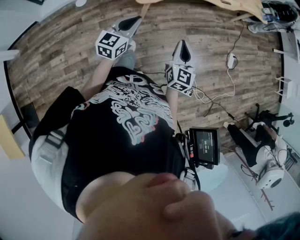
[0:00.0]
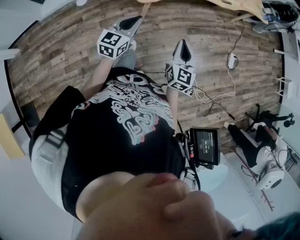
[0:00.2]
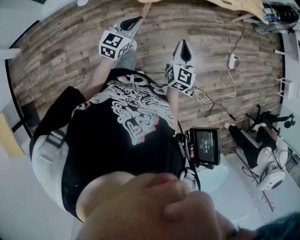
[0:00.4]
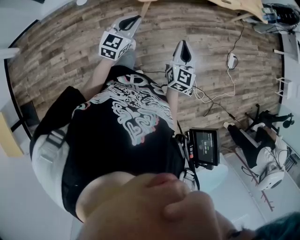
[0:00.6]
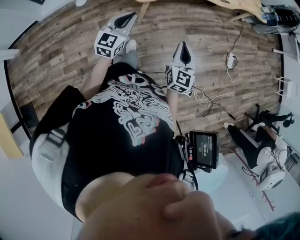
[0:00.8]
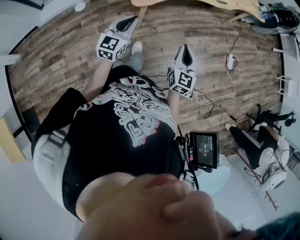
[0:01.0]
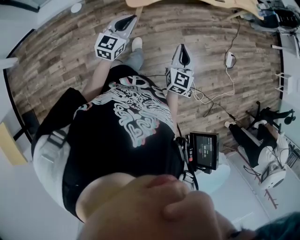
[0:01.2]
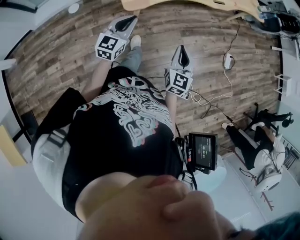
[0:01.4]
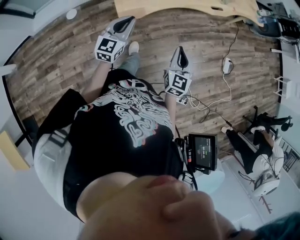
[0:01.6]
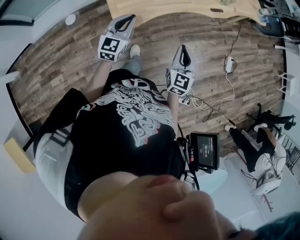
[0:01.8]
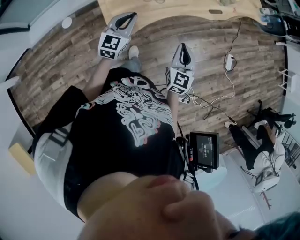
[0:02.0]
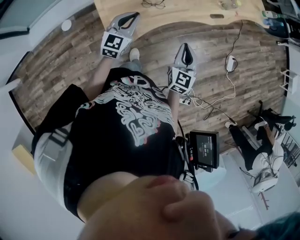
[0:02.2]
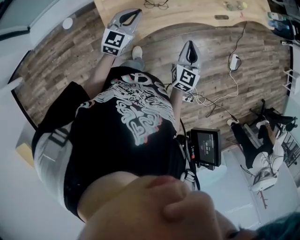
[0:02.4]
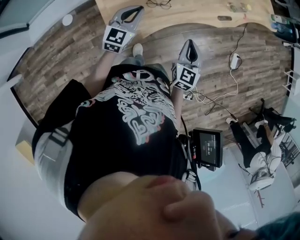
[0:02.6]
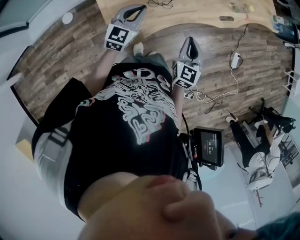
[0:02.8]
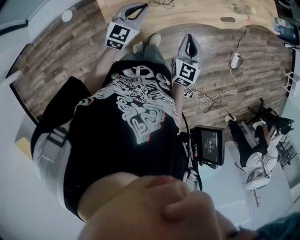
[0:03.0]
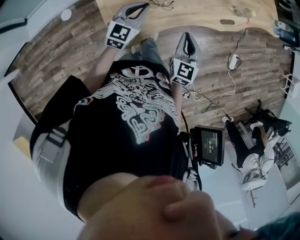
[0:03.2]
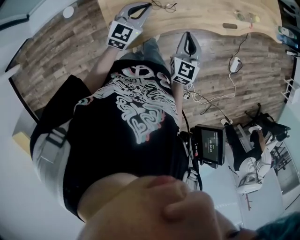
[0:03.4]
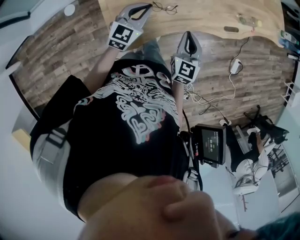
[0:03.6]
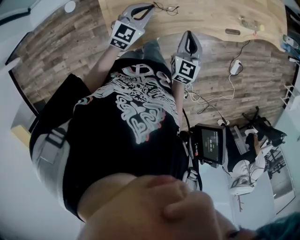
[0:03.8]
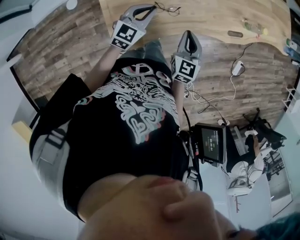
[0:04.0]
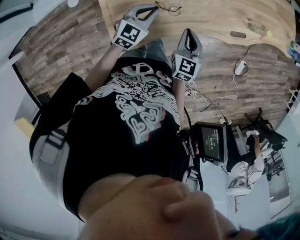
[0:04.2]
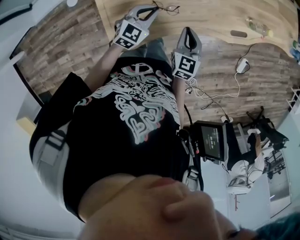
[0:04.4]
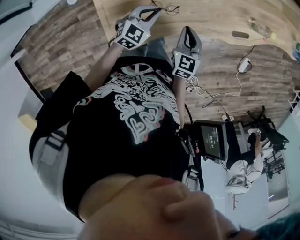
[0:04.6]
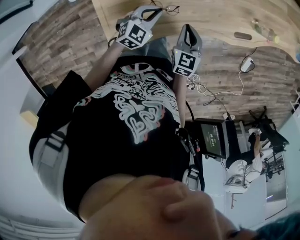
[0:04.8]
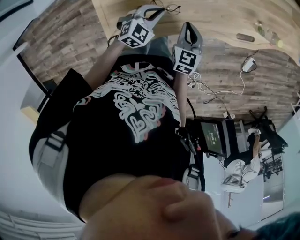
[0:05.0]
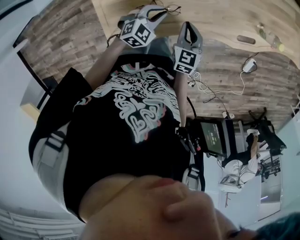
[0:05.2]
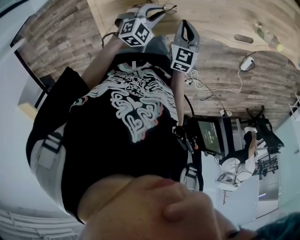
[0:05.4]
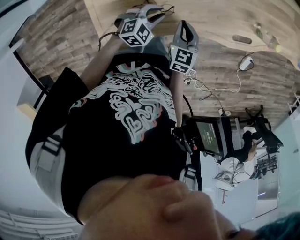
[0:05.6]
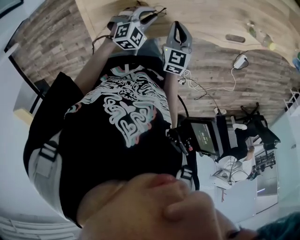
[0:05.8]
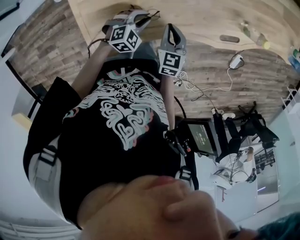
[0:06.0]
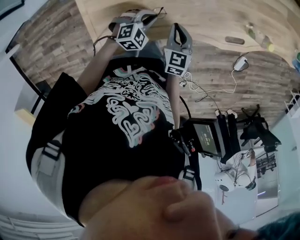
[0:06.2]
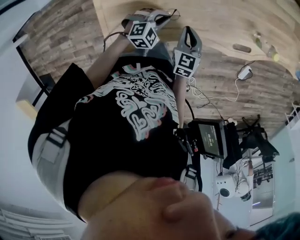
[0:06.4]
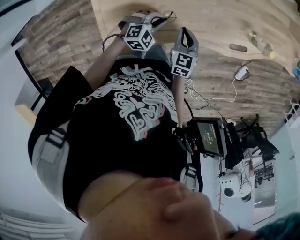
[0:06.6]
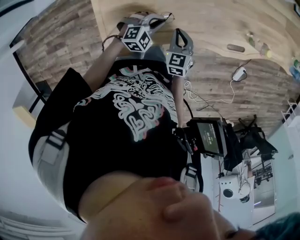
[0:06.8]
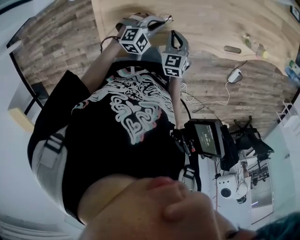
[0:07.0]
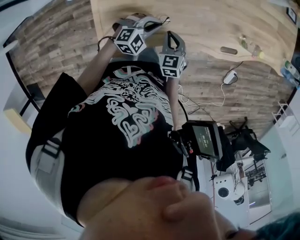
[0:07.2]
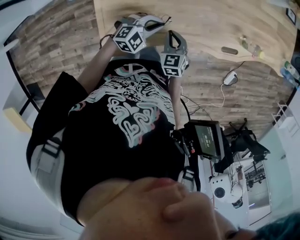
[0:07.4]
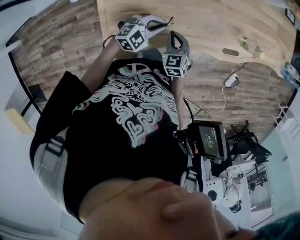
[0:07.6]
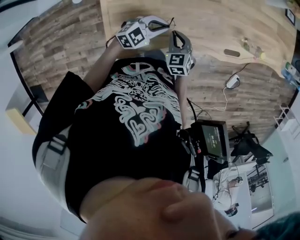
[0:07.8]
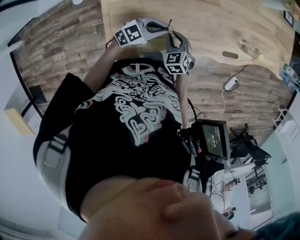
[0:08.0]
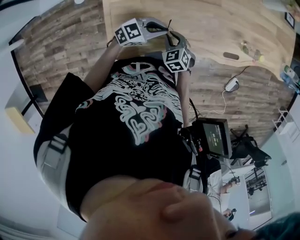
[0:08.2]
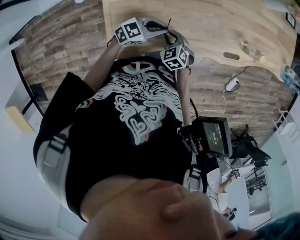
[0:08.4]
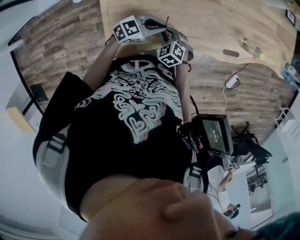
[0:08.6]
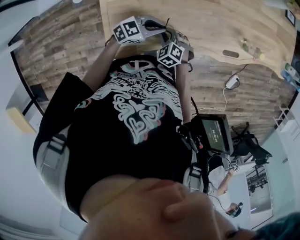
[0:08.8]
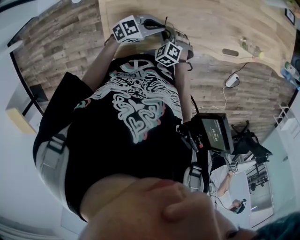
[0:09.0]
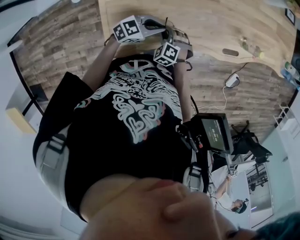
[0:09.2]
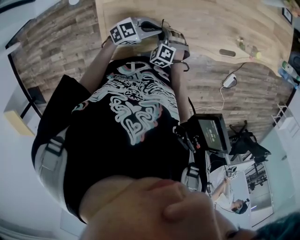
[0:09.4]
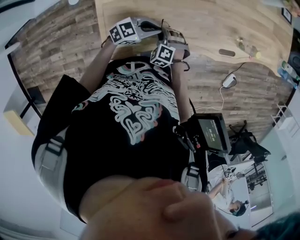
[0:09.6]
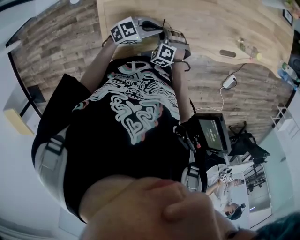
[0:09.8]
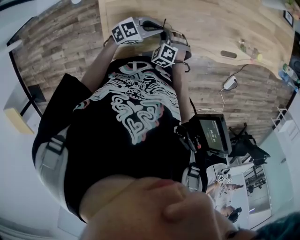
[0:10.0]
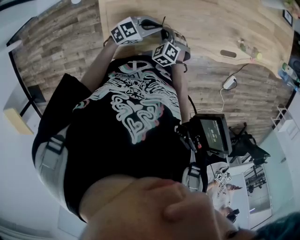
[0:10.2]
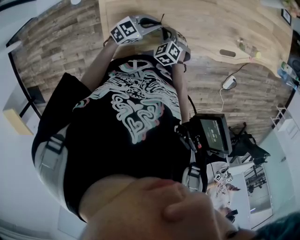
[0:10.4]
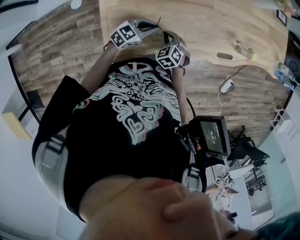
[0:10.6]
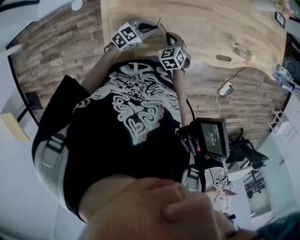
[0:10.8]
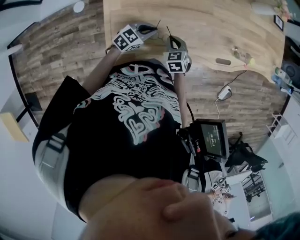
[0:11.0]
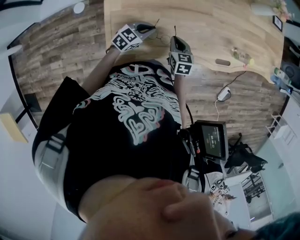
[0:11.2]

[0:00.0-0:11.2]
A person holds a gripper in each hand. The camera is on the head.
0:00.0 to 0:01.6: Both grippers move forward, some 15 cm.
0:01.6 to 0:03.2: The grippers both shift forward by about 35 cm.
0:03.2 to 0:04.8: The right gripper moves forward and downward, about 20 cm. Meanwhile the left gripper is displaced downward and forward by about 15 cm, and changes its angle by approximately 20 degrees.
0:04.8 to 0:06.4: The left gripper moves downward, some 5 cm, and rotates roughly 20 degrees. Meanwhile the right gripper changes place by roughly 5 cm.
0:06.4 to 0:08.0: The right gripper shifts approximately 10 cm to the left and backward, and rotates roughly 30 degrees; the left gripper shifts some 10 cm upward, and changes its angle by approximately 30 degrees.
0:08.0 to 0:09.6: The right gripper moves about 5 cm, and turns by roughly 40 degrees.
0:09.6 to 0:11.2: The left gripper moves to the left, approximately 5 cm, and rotates approximately 20 degrees, while the right gripper shifts approximately 10 cm upward and forward, and rotates around the line of its fingers by roughly 70 degrees, clockwise from behind.

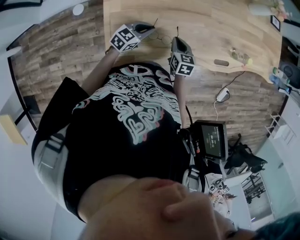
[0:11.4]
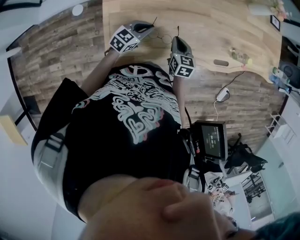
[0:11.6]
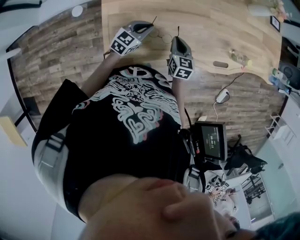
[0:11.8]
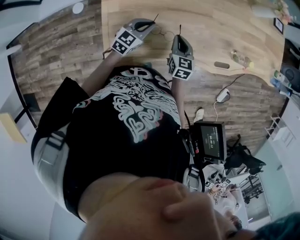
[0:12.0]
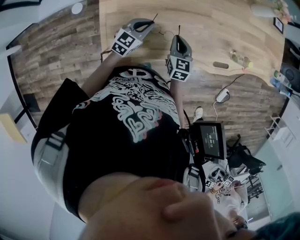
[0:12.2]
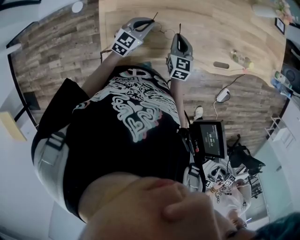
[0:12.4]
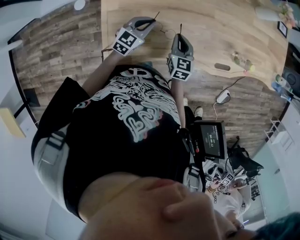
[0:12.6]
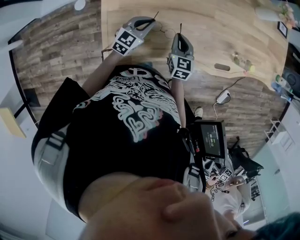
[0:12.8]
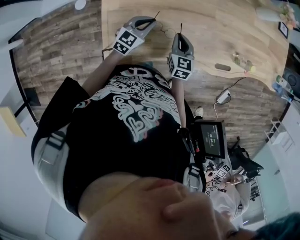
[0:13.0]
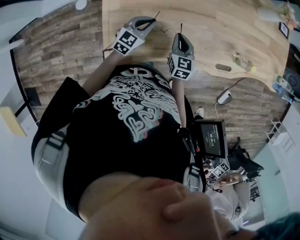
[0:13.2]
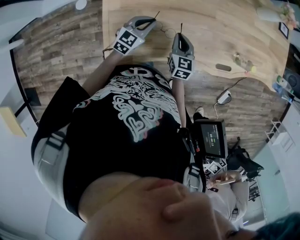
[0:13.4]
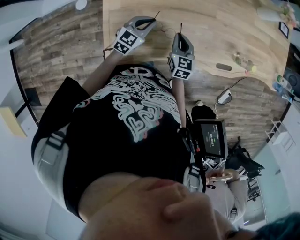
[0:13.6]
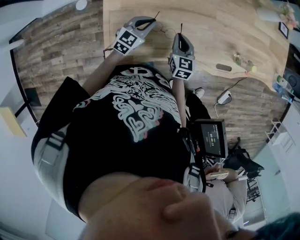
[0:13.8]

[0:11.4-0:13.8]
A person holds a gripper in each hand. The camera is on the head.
0:11.4 to 0:12.6: The grippers stay close to where they were, moving slightly.
0:12.6 to 0:13.8: Both grippers stay put.

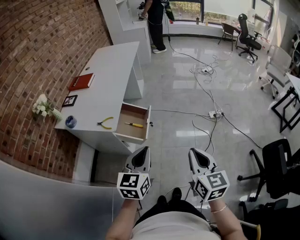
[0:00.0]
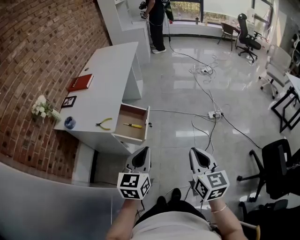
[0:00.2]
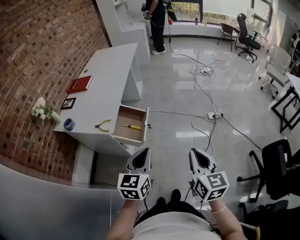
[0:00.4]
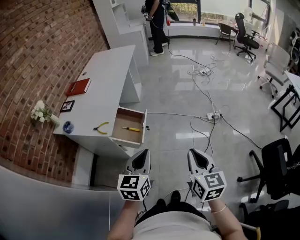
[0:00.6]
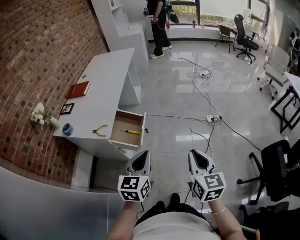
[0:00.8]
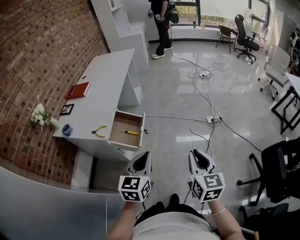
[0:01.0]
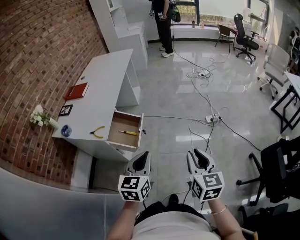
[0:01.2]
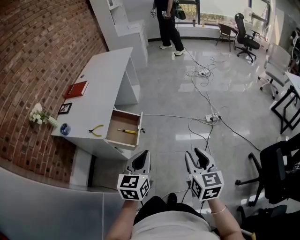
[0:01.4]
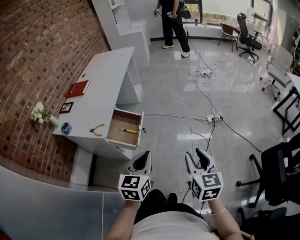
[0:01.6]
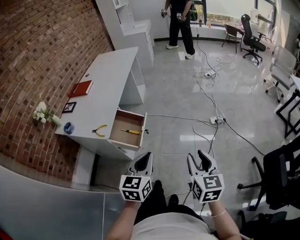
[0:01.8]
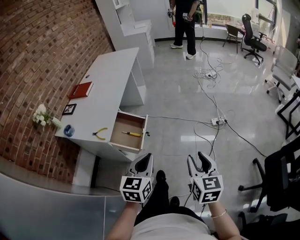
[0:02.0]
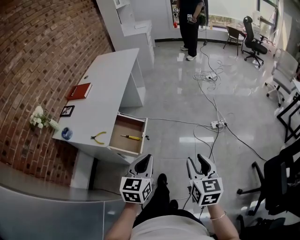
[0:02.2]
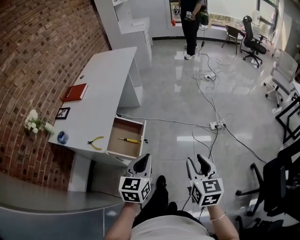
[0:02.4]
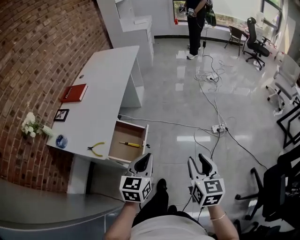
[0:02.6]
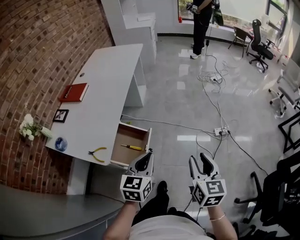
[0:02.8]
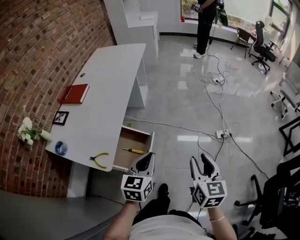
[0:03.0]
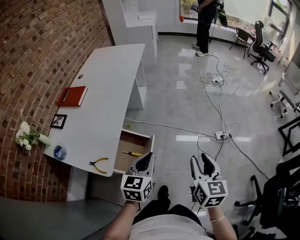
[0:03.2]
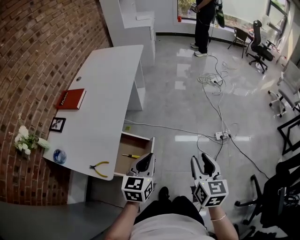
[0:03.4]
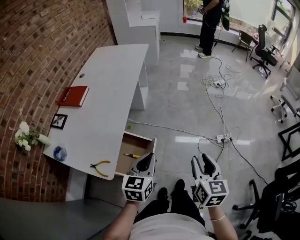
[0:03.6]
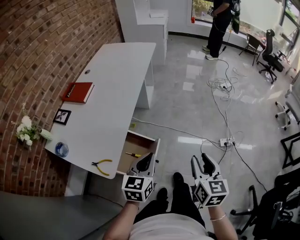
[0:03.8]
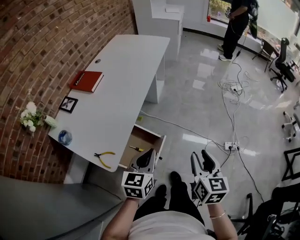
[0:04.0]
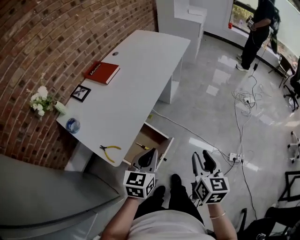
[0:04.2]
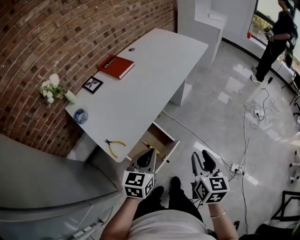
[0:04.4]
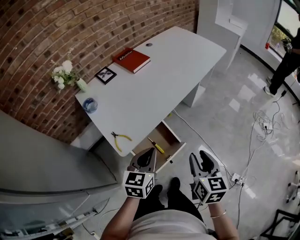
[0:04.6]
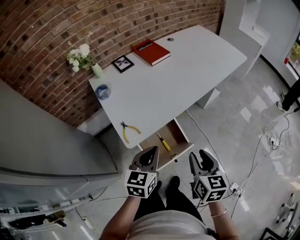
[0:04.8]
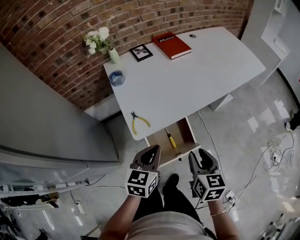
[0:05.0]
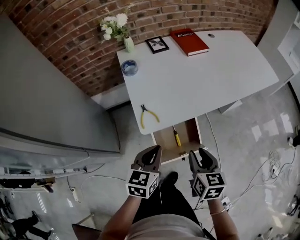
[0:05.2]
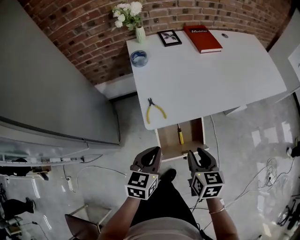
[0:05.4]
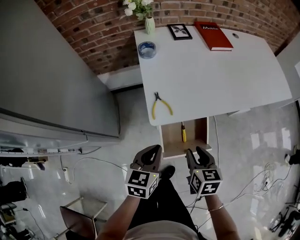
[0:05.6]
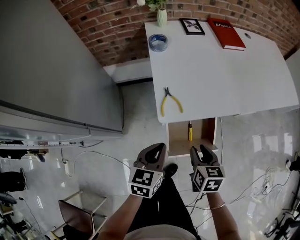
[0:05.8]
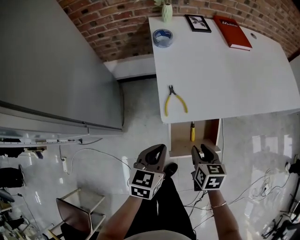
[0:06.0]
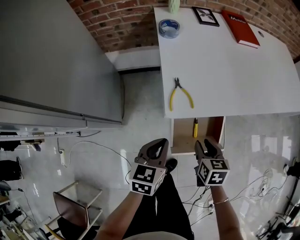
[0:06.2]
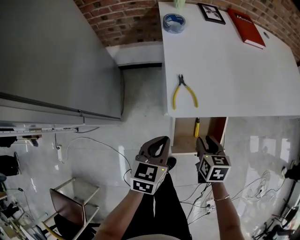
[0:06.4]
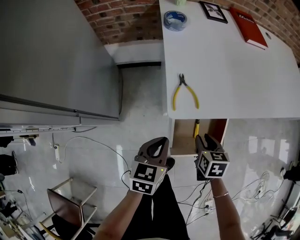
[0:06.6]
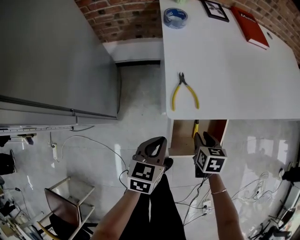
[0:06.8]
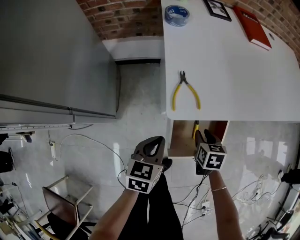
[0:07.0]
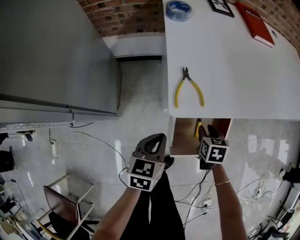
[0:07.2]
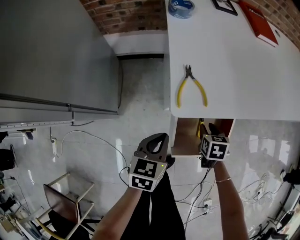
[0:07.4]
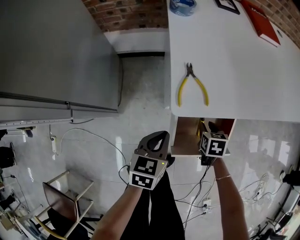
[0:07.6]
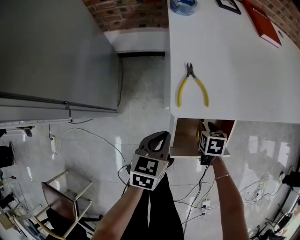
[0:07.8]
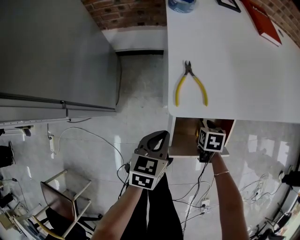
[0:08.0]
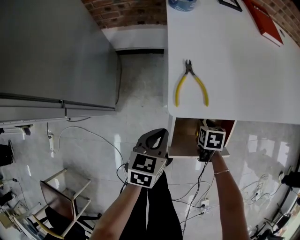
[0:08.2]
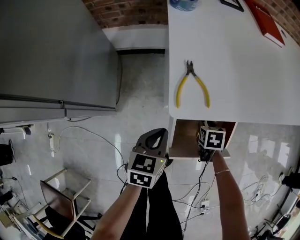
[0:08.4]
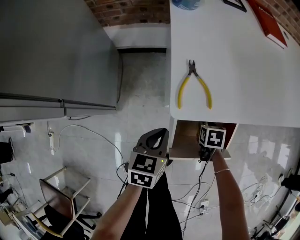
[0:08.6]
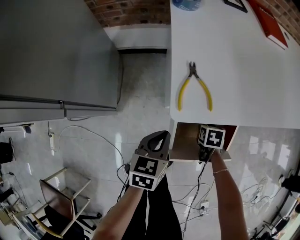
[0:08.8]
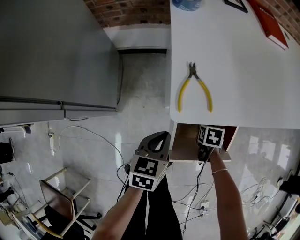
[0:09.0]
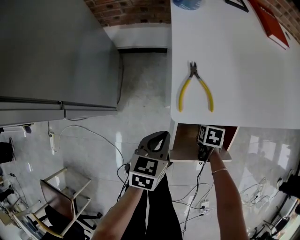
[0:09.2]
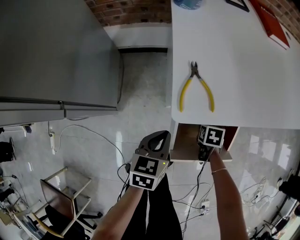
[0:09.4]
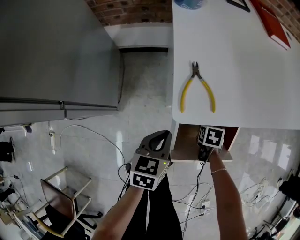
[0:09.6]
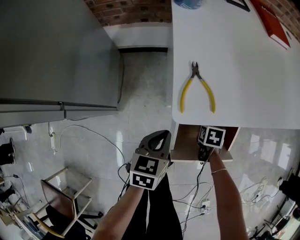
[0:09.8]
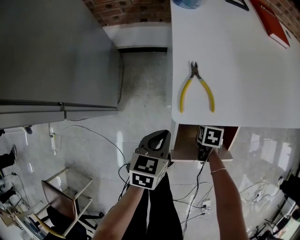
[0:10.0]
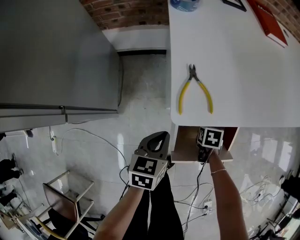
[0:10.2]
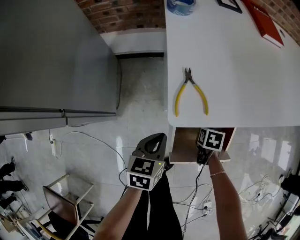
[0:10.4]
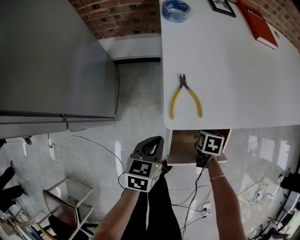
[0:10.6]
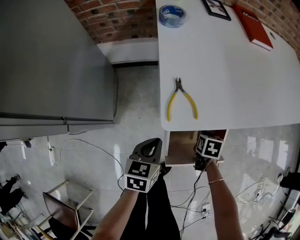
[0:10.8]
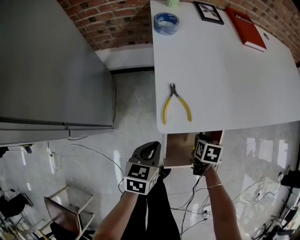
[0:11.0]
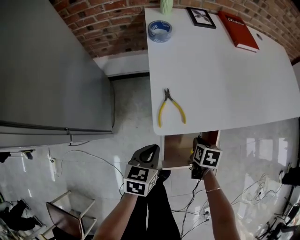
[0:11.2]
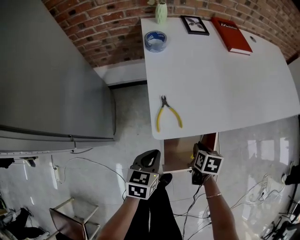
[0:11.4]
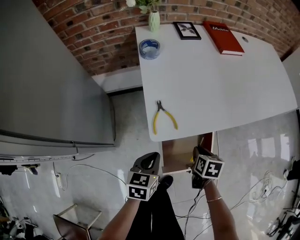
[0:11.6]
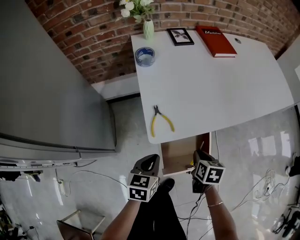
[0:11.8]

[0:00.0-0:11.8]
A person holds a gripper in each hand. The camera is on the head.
0:00.0 to 0:01.4: Both grippers move to the right, approximately 10 cm. The right gripper opens its fingers.
0:01.4 to 0:03.0: The two grippers go approximately 25 cm forward.
0:03.0 to 0:04.4: The right gripper shifts by some 20 cm, and swivels roughly 30 degrees. Meanwhile the left gripper shifts by roughly 10 cm, and rotates some 30 degrees.
0:04.4 to 0:06.0: The left gripper shifts by about 20 cm, and changes its angle by approximately 50 degrees; the right gripper travels downward by some 20 cm, and turns by some 60 degrees.
0:06.0 to 0:07.4: The left gripper goes some 10 cm downward. The right gripper shifts some 20 cm downward and forward.
0:07.4 to 0:08.8: The right gripper goes about 10 cm downward.
0:08.8 to 0:10.4: The grippers move only a little.
0:10.4 to 0:11.8: The right gripper moves upward, some 20 cm. Meanwhile the left gripper travels upward by approximately 10 cm.
